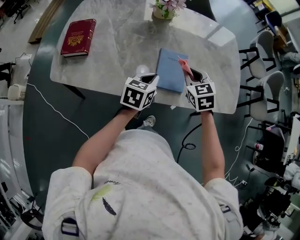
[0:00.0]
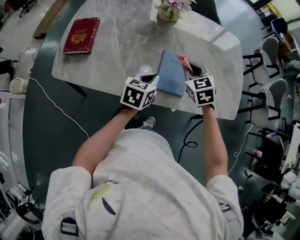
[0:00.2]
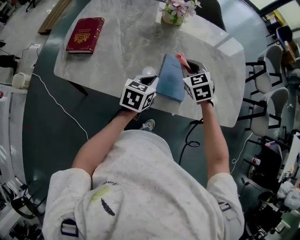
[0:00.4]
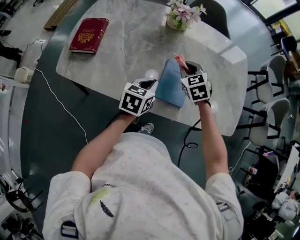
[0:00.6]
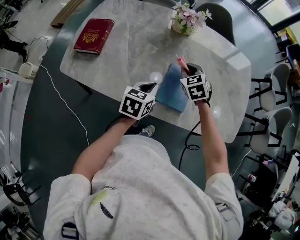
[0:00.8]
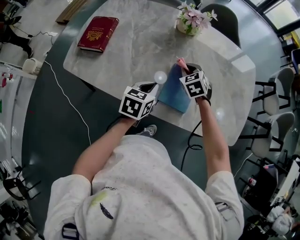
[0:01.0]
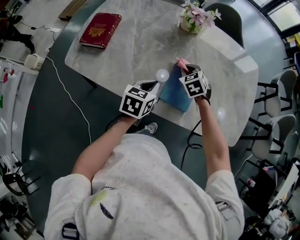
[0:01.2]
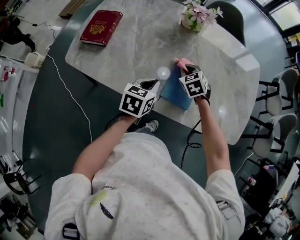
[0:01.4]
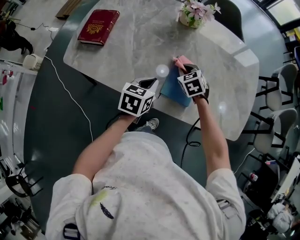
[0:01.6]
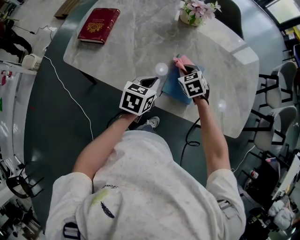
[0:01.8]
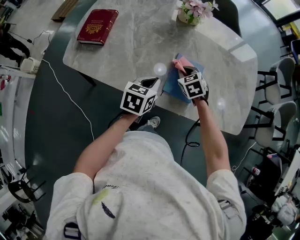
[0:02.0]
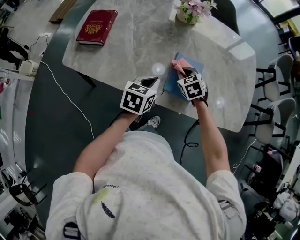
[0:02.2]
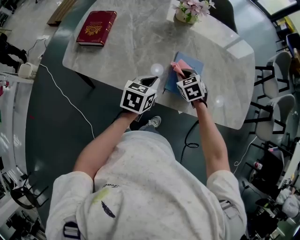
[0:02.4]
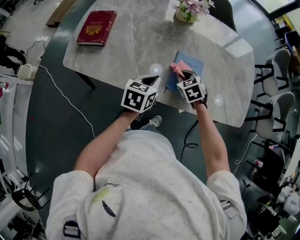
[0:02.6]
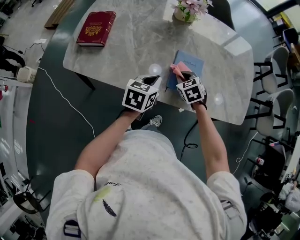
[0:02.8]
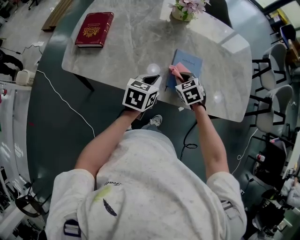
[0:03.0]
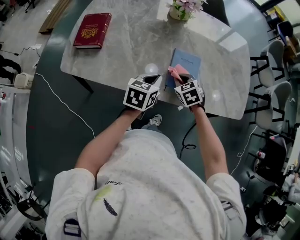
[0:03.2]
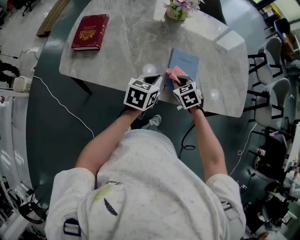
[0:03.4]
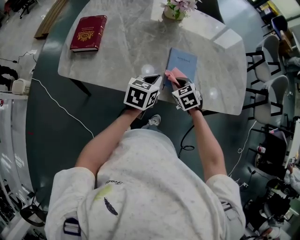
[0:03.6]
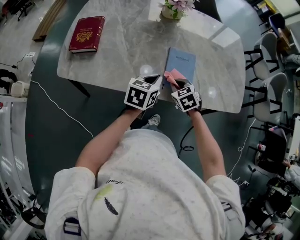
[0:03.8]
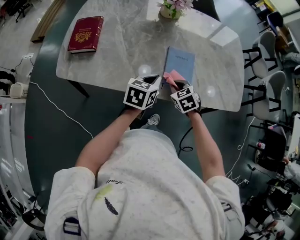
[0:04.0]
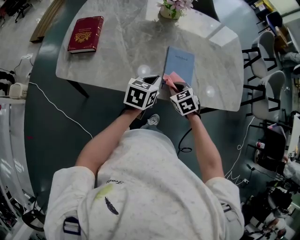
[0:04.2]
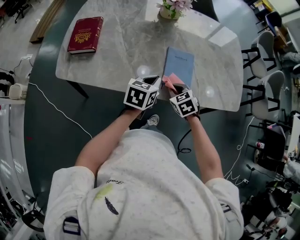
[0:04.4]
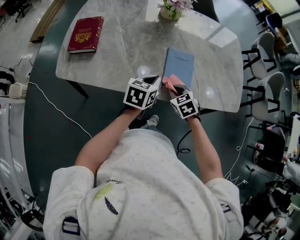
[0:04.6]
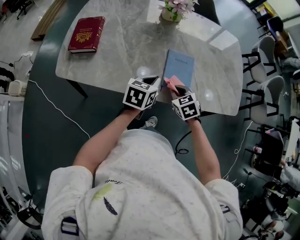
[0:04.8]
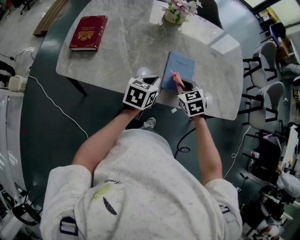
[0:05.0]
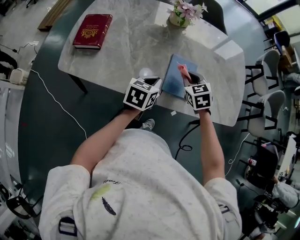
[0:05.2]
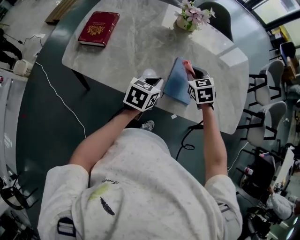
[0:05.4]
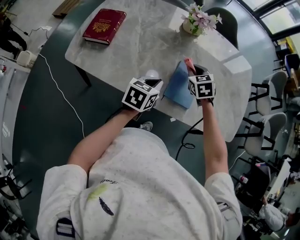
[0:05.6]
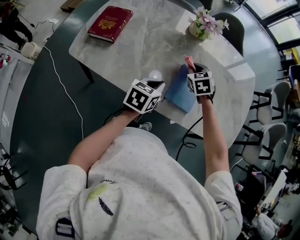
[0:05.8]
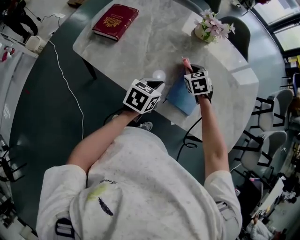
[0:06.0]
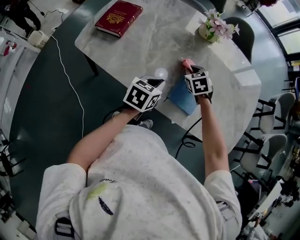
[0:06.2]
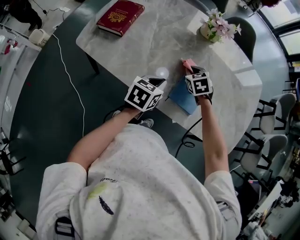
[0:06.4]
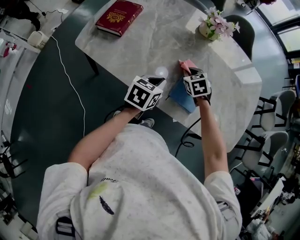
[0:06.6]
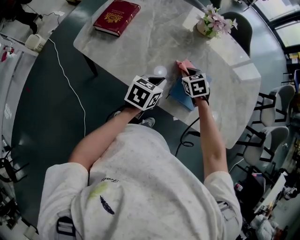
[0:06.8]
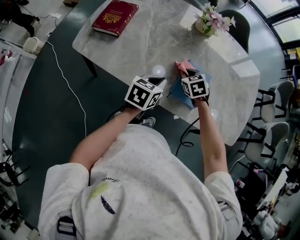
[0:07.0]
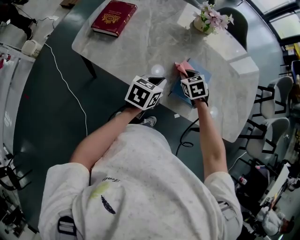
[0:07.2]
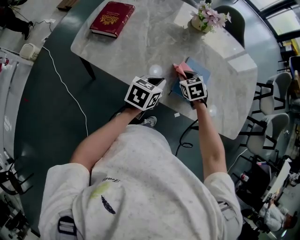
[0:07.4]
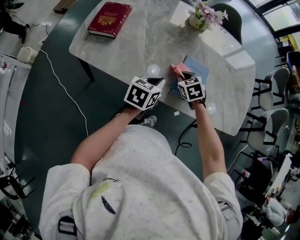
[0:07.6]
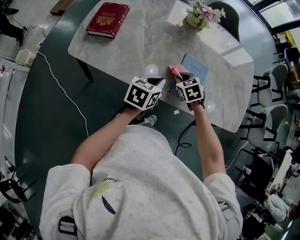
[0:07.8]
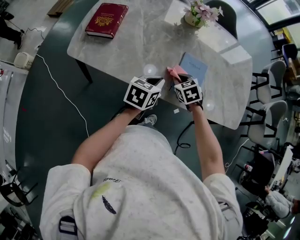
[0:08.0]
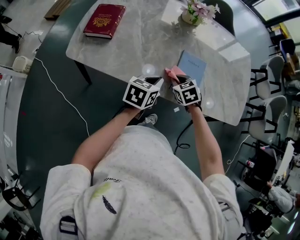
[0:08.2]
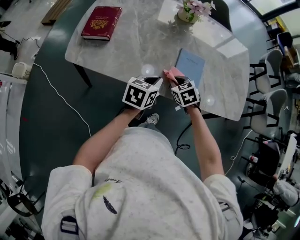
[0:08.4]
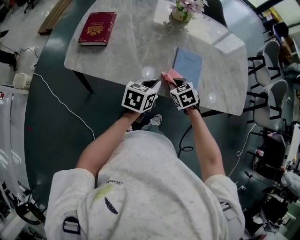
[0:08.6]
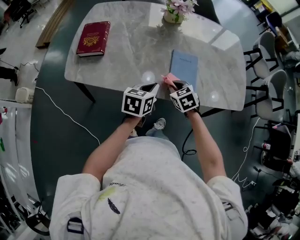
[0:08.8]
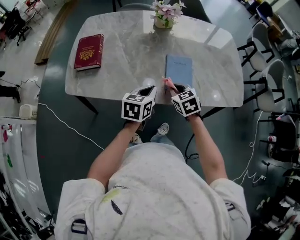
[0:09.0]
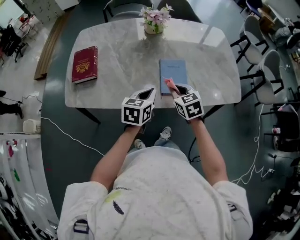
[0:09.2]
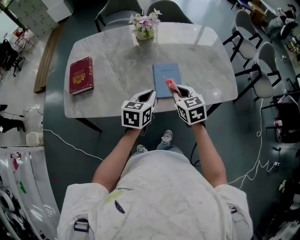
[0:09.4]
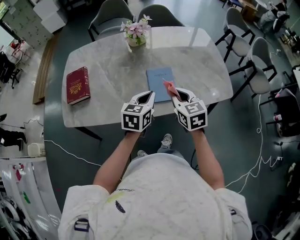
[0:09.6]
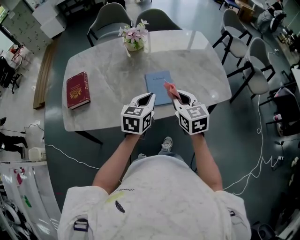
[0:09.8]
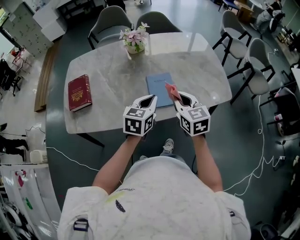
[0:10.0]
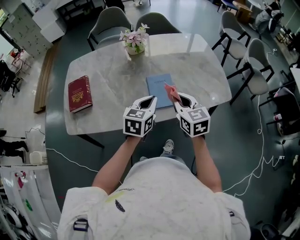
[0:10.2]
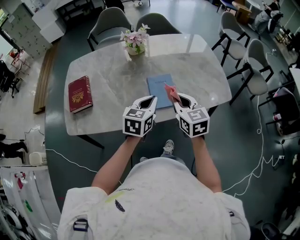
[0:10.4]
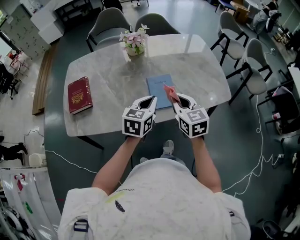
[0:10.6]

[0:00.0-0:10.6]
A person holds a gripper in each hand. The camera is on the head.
0:00.0 to 0:01.6: The right gripper is displaced downward, forward and to the left by about 15 cm, and turns by approximately 20 degrees.
0:01.6 to 0:03.0: The right gripper heads backward, covering roughly 10 cm.
0:03.0 to 0:04.6: The right gripper moves backward, about 5 cm.
0:04.6 to 0:06.0: The right gripper moves forward, approximately 20 cm.
0:06.0 to 0:07.6: The right gripper travels backward by roughly 10 cm.
0:07.6 to 0:09.0: The right gripper travels backward and upward by roughly 10 cm.
0:09.0 to 0:10.6: The grippers both shift upward and to the right by approximately 15 cm. The right gripper changes its angle by approximately 30 degrees.

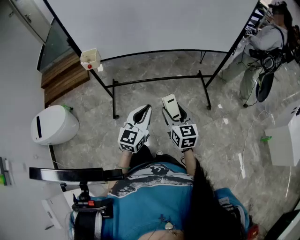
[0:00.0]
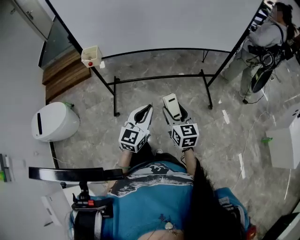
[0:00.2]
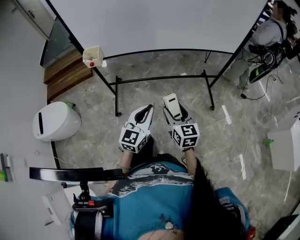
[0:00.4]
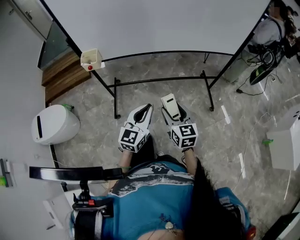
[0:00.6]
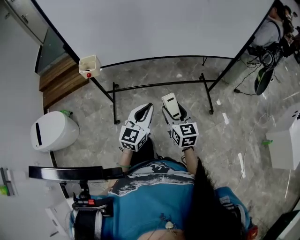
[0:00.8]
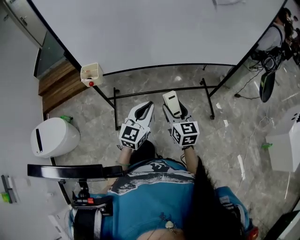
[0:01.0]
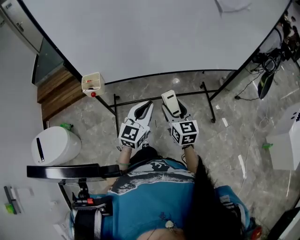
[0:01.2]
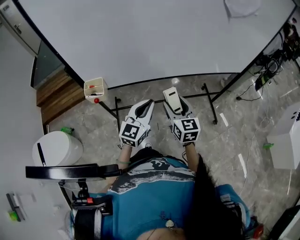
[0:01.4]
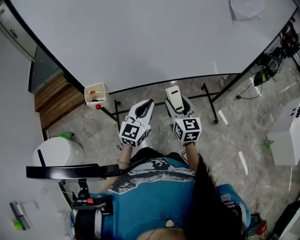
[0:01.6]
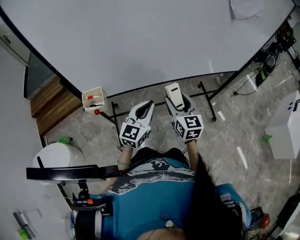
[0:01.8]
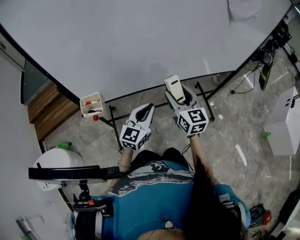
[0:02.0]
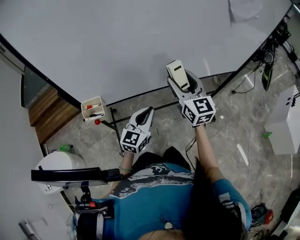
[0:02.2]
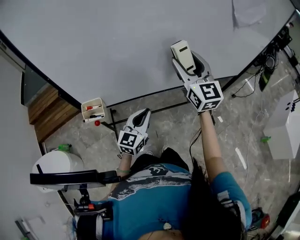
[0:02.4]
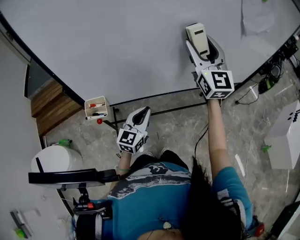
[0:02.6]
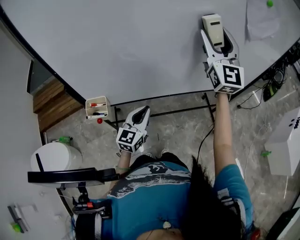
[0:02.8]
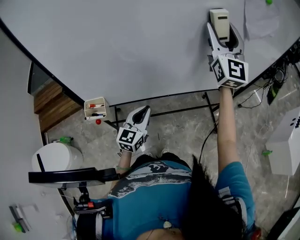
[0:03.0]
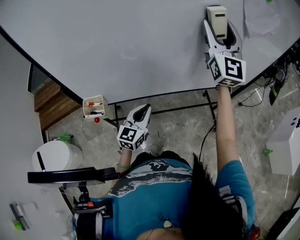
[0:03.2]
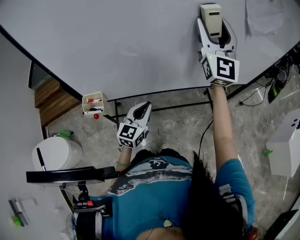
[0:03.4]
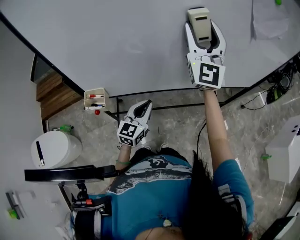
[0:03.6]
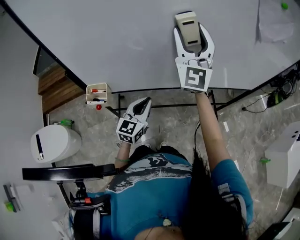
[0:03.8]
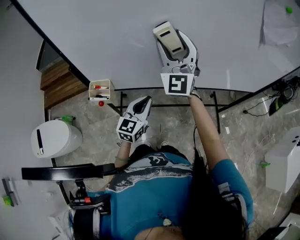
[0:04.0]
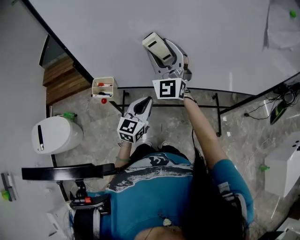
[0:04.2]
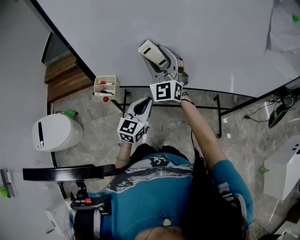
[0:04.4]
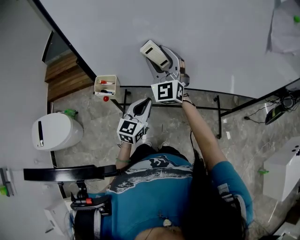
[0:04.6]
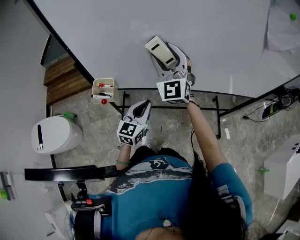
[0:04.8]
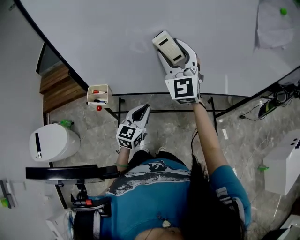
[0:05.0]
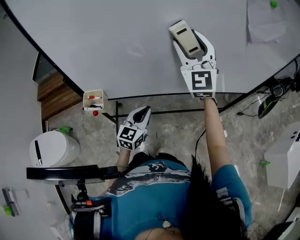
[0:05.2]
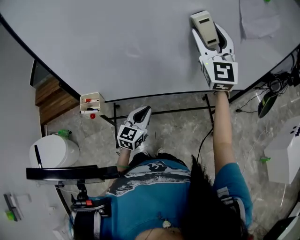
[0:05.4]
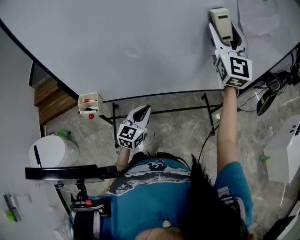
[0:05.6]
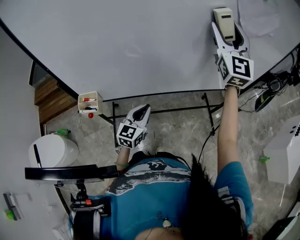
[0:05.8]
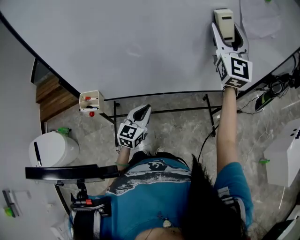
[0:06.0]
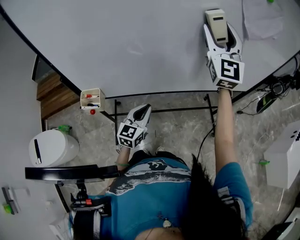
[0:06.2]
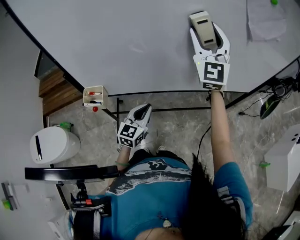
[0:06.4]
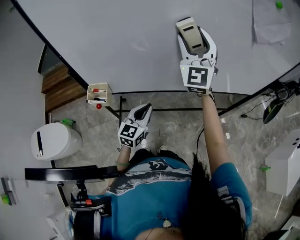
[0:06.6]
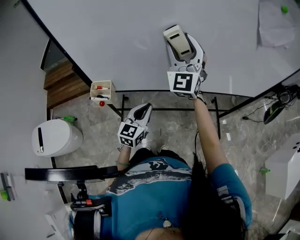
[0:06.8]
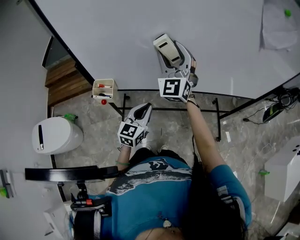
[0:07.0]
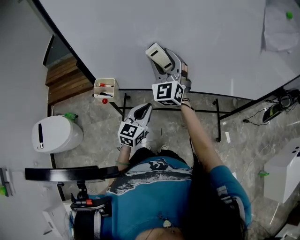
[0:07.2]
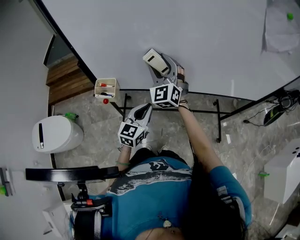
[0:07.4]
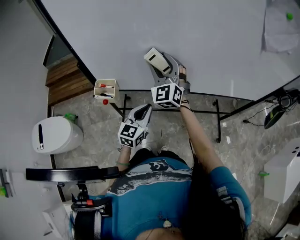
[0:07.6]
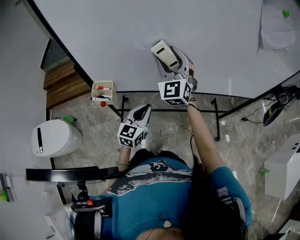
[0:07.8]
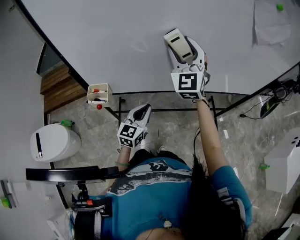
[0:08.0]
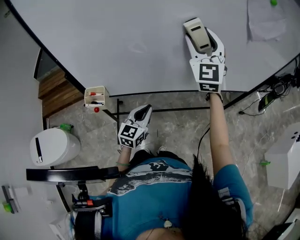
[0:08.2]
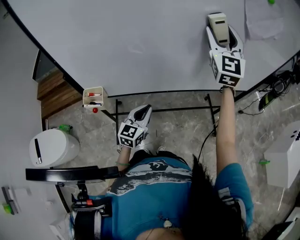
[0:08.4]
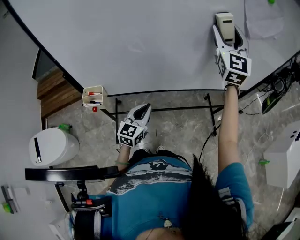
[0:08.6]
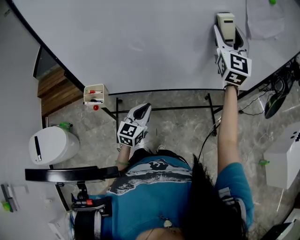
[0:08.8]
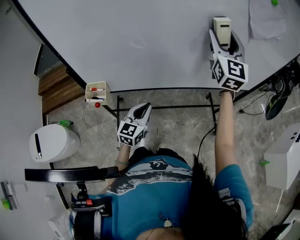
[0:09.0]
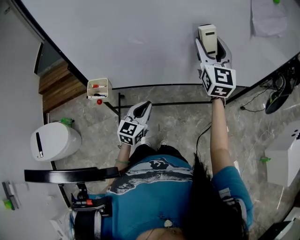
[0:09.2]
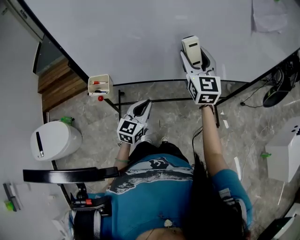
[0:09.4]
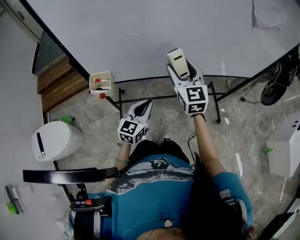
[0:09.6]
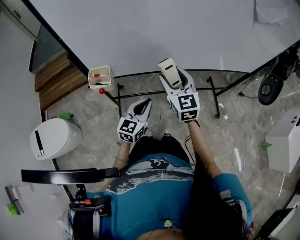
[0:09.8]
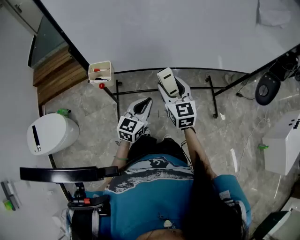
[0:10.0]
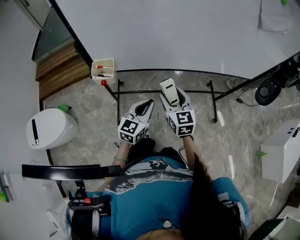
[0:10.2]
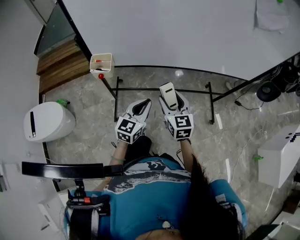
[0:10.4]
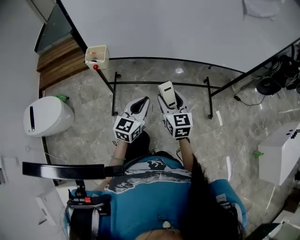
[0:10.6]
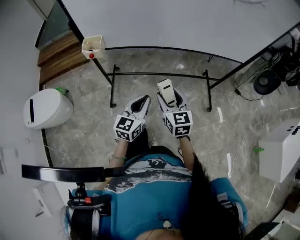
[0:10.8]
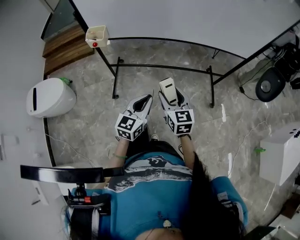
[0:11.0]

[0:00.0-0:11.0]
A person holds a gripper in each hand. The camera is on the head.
0:00.0 to 0:01.6: Both grippers travel together forward and to the left, about 35 cm.
0:01.6 to 0:03.2: The left gripper heads forward, covering roughly 10 cm. Meanwhile the right gripper goes roughly 40 cm upward and forward, and points its fingers about 40 degrees further upward.
0:03.2 to 0:04.8: The right gripper moves to the left and downward, approximately 30 cm, and changes its angle by roughly 30 degrees.
0:04.8 to 0:06.2: The left gripper travels to the right by some 5 cm, while the right gripper shifts about 30 cm to the right and upward, and turns by some 20 degrees.
0:06.2 to 0:07.8: The left gripper is displaced to the left by some 5 cm, while the right gripper is displaced to the left and downward by some 25 cm, and swivels about 20 degrees.
0:07.8 to 0:09.4: The right gripper moves to the right, roughly 10 cm, and rotates roughly 30 degrees.
0:09.4 to 0:11.0: The left gripper goes roughly 30 cm backward and to the right; the right gripper goes some 40 cm backward and downward, and turns by approximately 30 degrees.

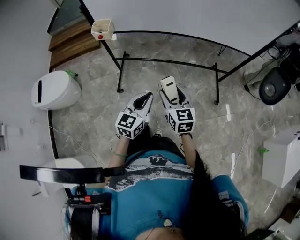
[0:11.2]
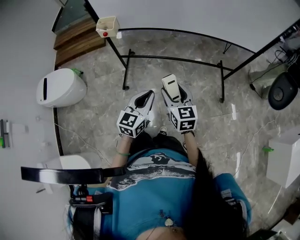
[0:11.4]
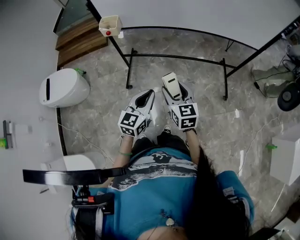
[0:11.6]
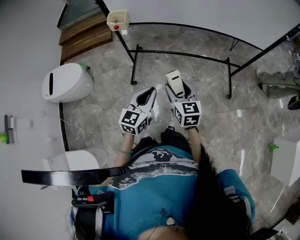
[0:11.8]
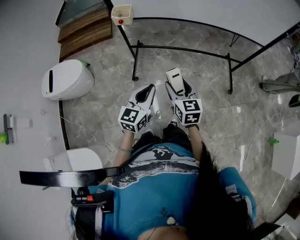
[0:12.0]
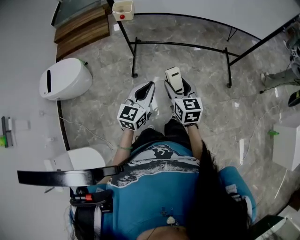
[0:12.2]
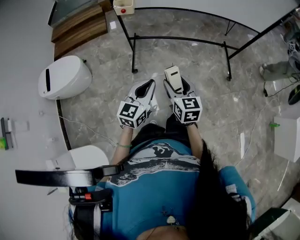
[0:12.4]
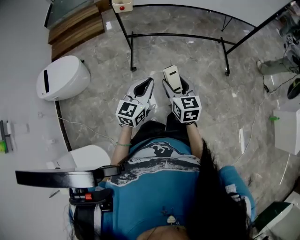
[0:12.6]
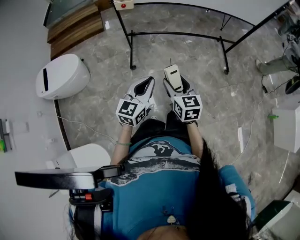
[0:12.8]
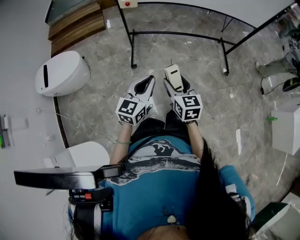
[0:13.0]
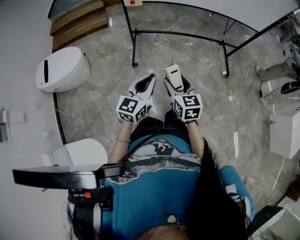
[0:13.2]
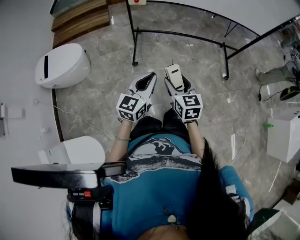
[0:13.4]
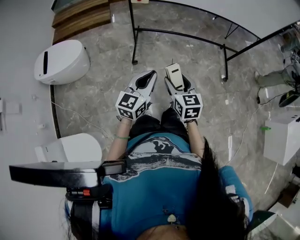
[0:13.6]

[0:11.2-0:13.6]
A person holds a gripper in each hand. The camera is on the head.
0:11.2 to 0:12.4: The two grippers go some 20 cm to the left and backward.
0:12.4 to 0:13.6: The left gripper shifts about 10 cm to the left and backward; the right gripper goes about 10 cm backward and to the left.
